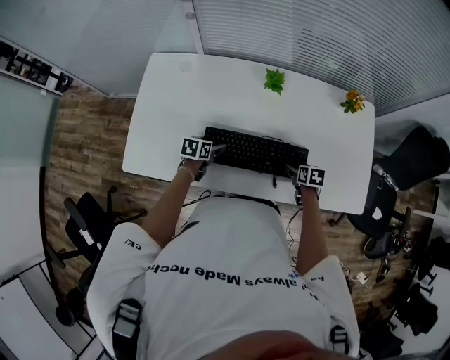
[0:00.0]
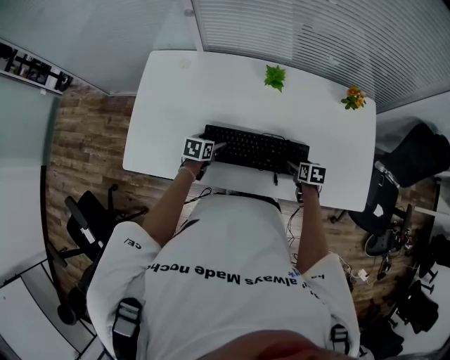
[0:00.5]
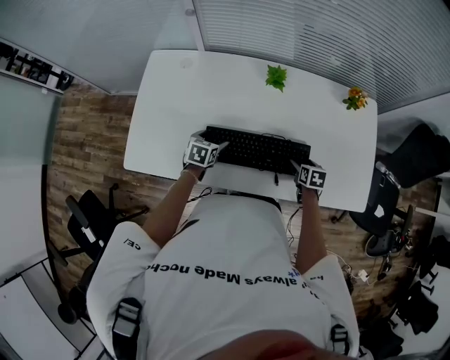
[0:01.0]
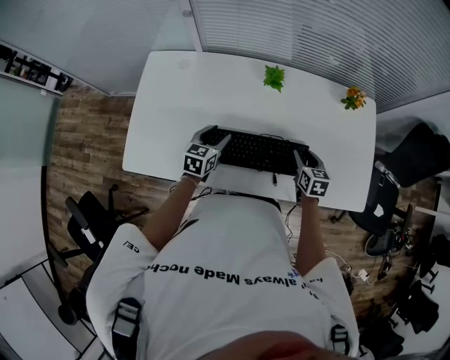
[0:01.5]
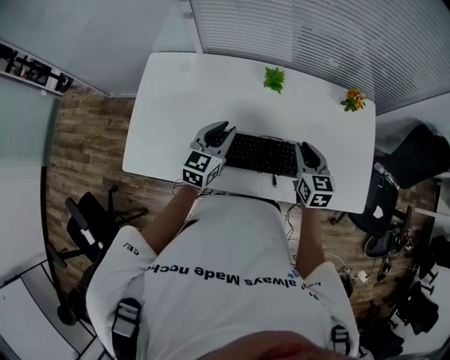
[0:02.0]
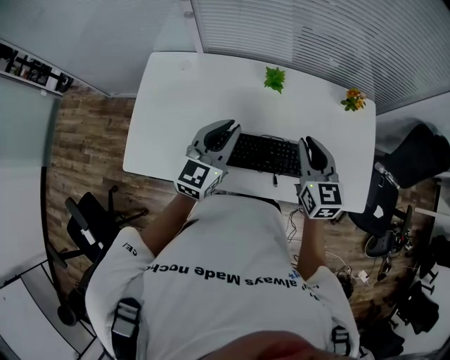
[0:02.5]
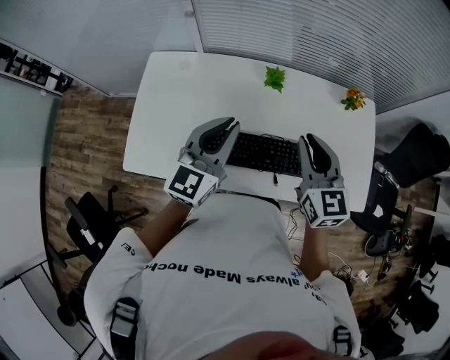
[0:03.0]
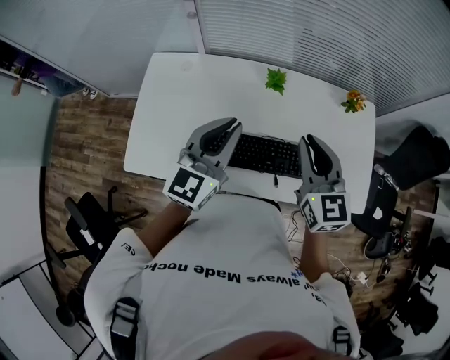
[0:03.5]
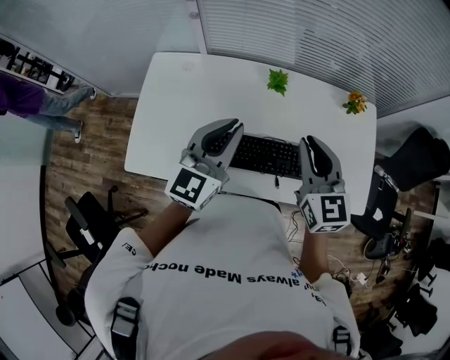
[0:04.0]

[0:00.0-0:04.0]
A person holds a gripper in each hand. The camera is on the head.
0:00.0 to 0:02.0: The grippers both shift upward by about 20 cm. The left gripper tips its fingers upward by roughly 30 degrees, and closes up; the right gripper tips its fingers upward by about 30 degrees, and closes.
0:02.0 to 0:04.0: The grippers both shift upward by about 15 cm.

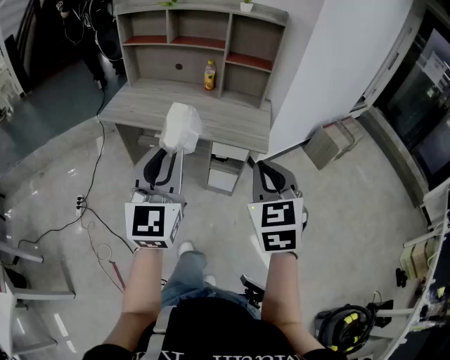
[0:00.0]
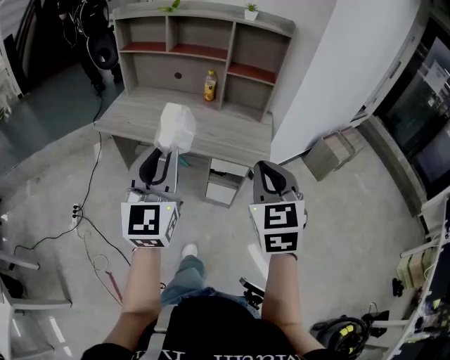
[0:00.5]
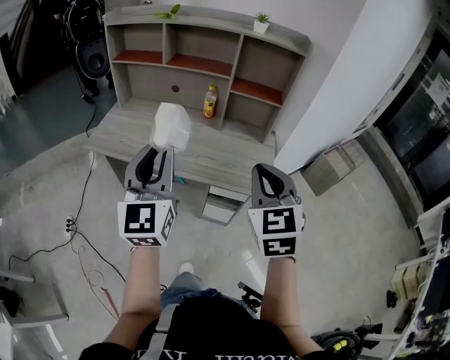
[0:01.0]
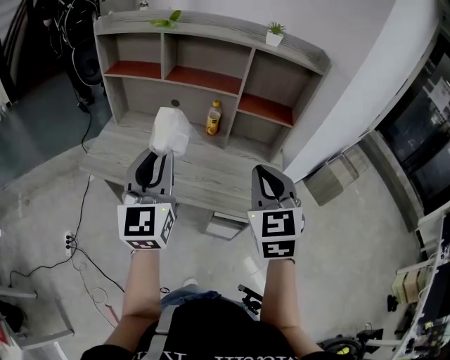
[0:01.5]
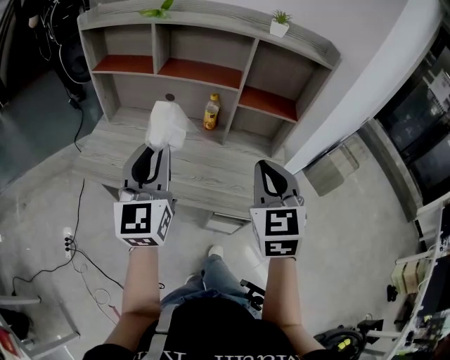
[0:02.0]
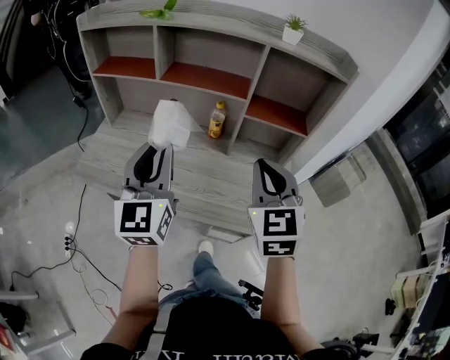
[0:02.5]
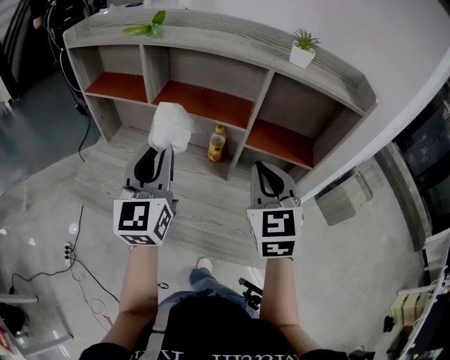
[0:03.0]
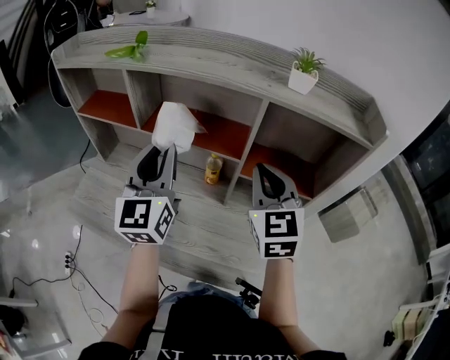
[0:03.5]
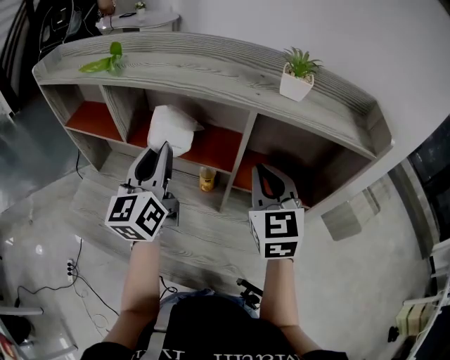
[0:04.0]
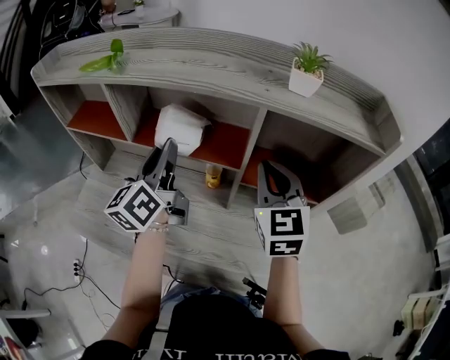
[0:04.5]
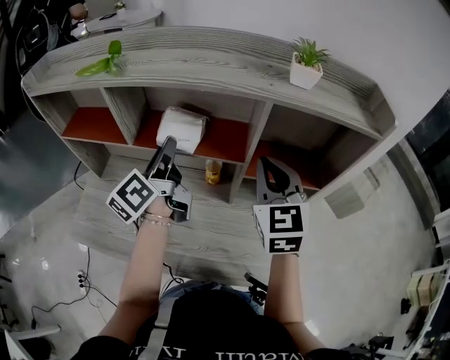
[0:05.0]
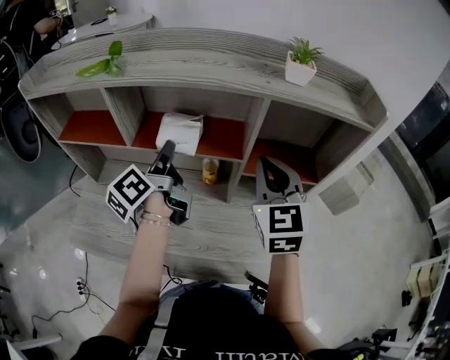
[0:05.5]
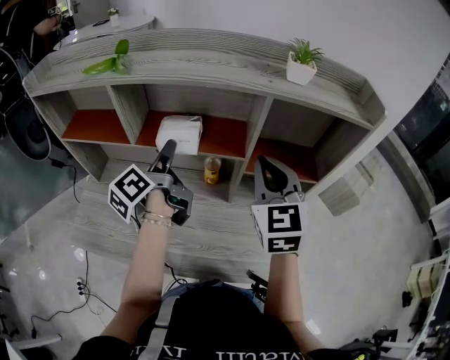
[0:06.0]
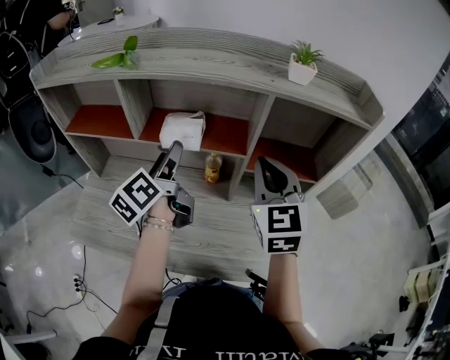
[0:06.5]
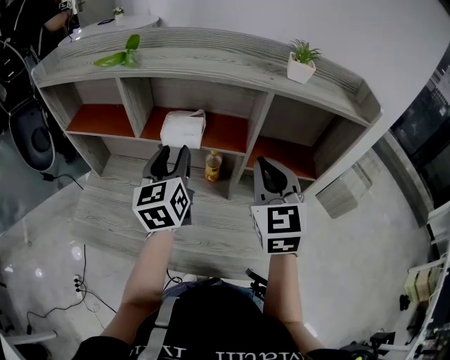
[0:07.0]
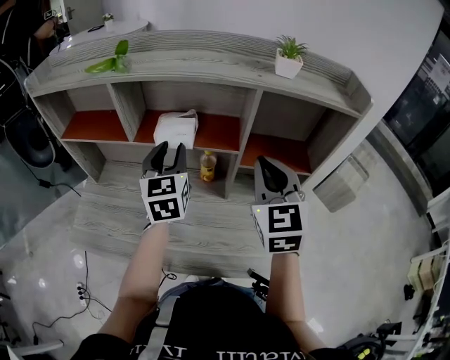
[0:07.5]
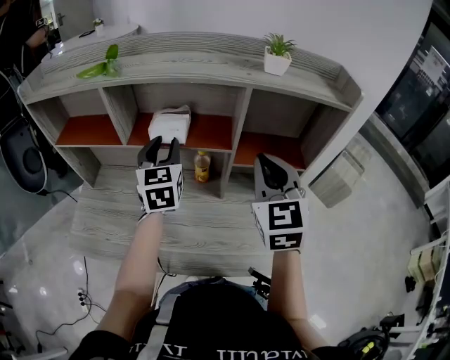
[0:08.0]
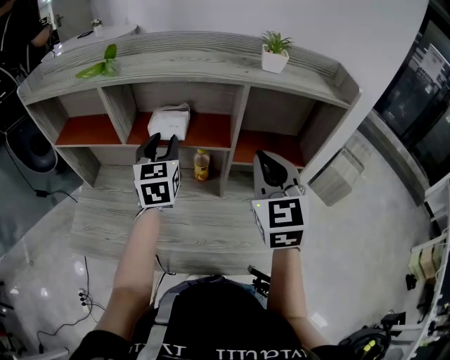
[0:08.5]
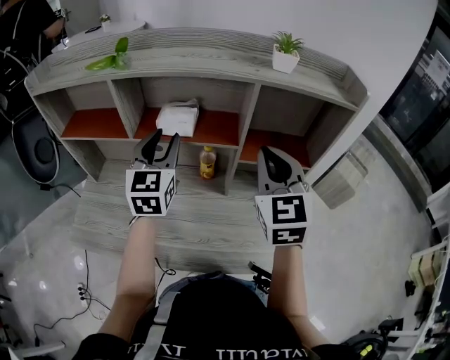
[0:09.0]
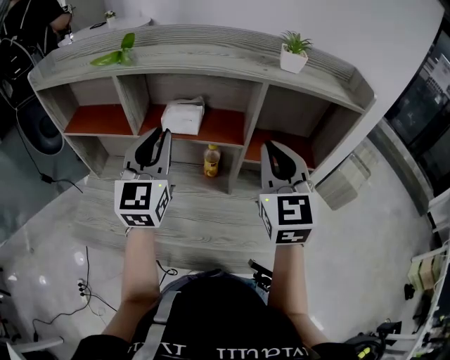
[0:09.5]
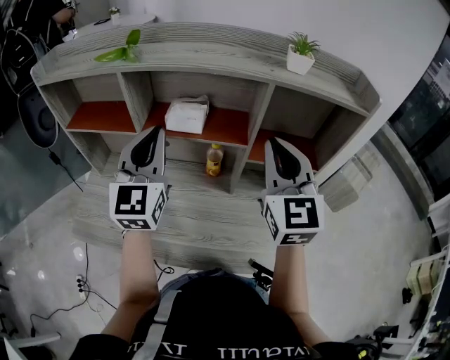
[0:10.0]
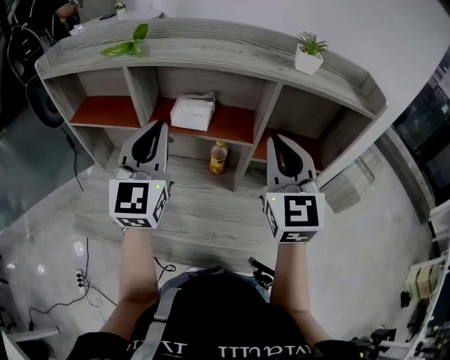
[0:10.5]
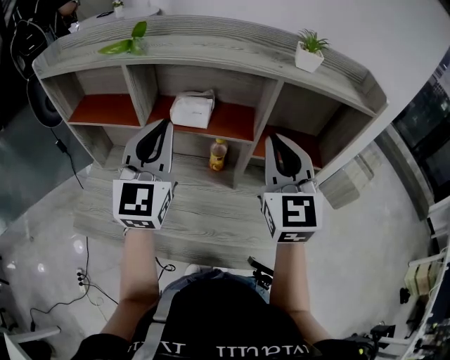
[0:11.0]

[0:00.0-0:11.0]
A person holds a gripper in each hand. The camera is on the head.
0:00.0 to 0:02.0: The two grippers go approximately 40 cm forward.
0:02.0 to 0:03.5: The grippers both shift forward by about 25 cm.
0:03.5 to 0:05.5: The left gripper is displaced forward and downward by some 10 cm, and twists about 60 degrees counterclockwise, seen from behind.
0:05.5 to 0:07.5: The left gripper rotates around the line of its fingers by roughly 70 degrees, clockwise from behind, and opens and closes again.
0:07.5 to 0:09.0: The grippers make only small movements.
0:09.0 to 0:11.0: The left gripper is displaced upward and backward by approximately 10 cm, and closes its fingers.

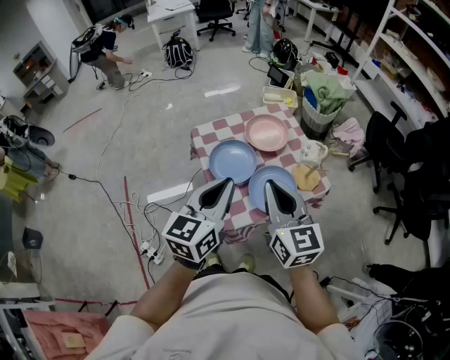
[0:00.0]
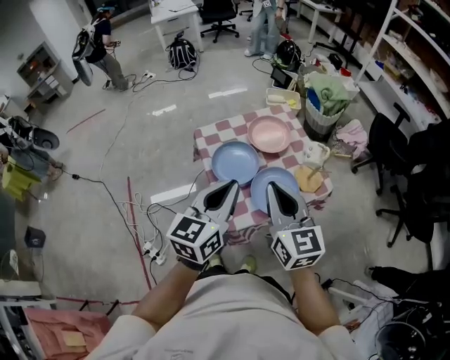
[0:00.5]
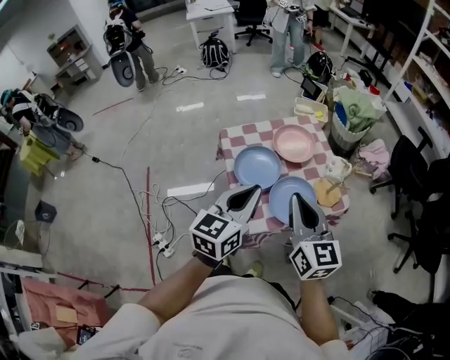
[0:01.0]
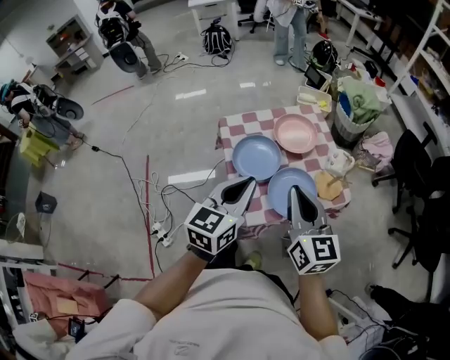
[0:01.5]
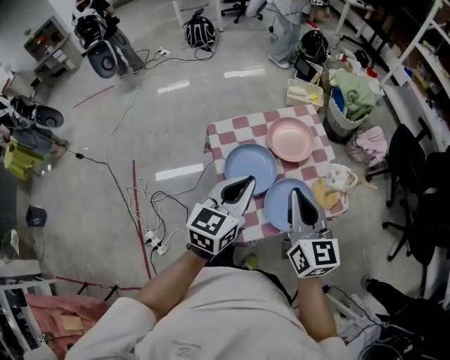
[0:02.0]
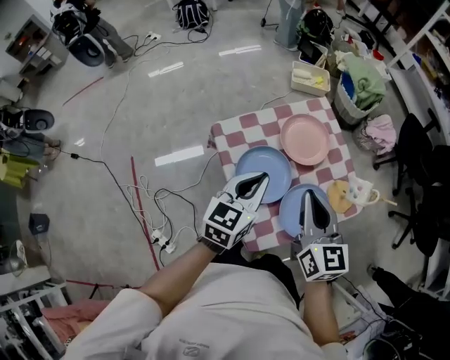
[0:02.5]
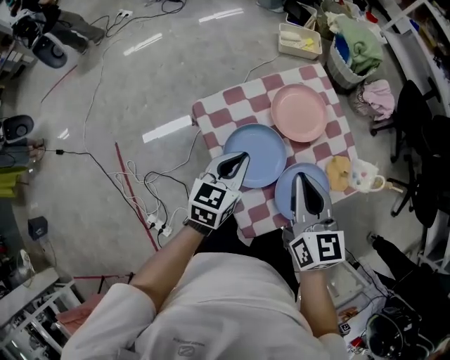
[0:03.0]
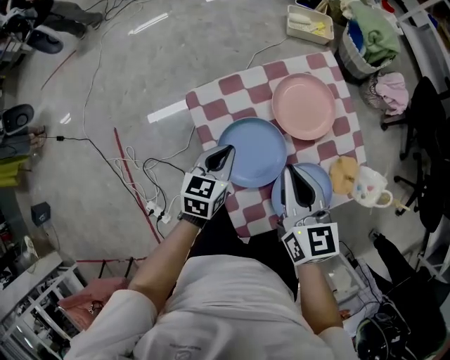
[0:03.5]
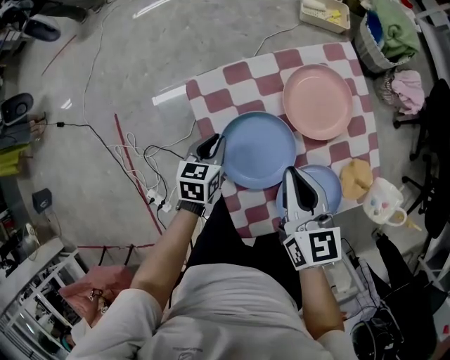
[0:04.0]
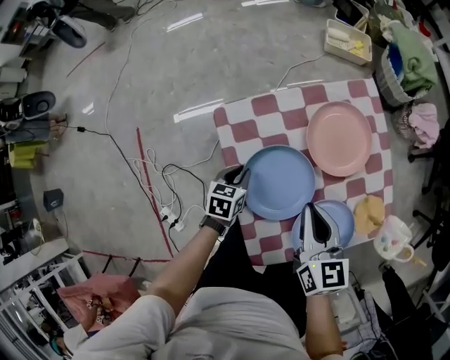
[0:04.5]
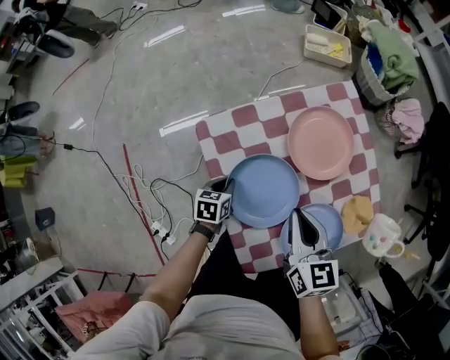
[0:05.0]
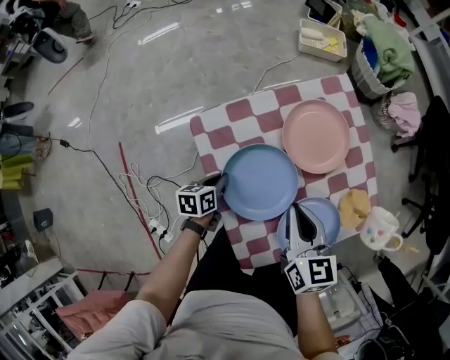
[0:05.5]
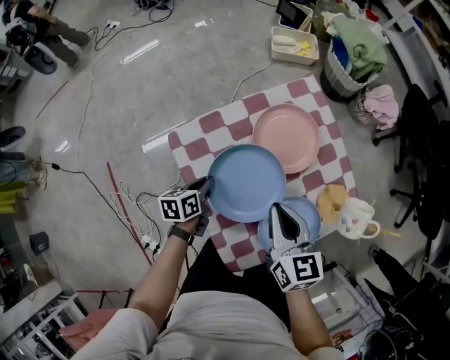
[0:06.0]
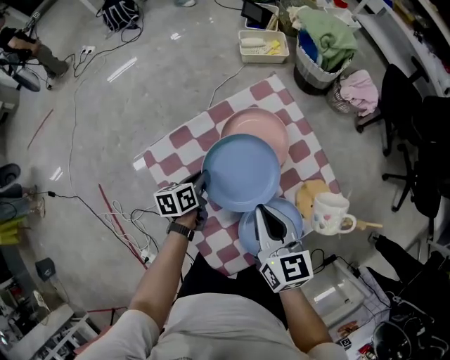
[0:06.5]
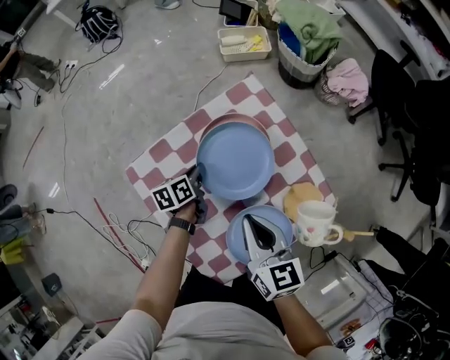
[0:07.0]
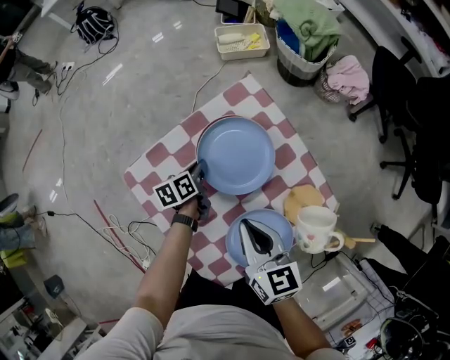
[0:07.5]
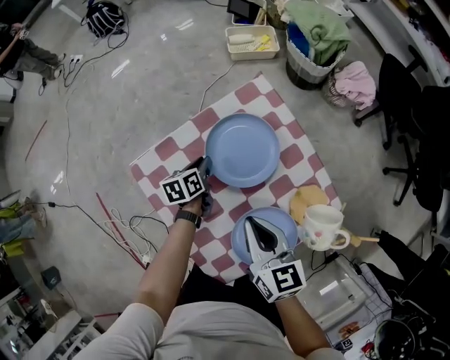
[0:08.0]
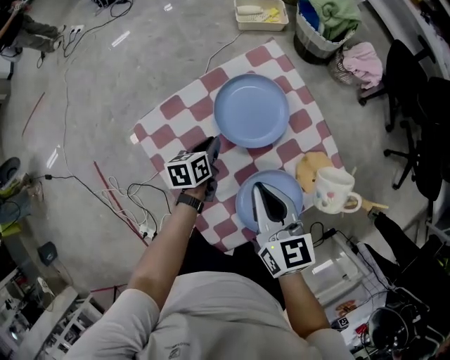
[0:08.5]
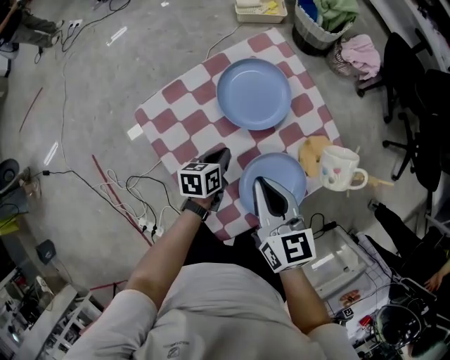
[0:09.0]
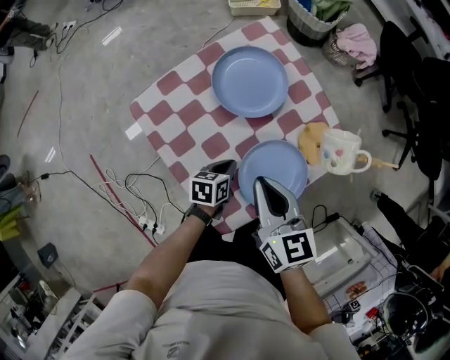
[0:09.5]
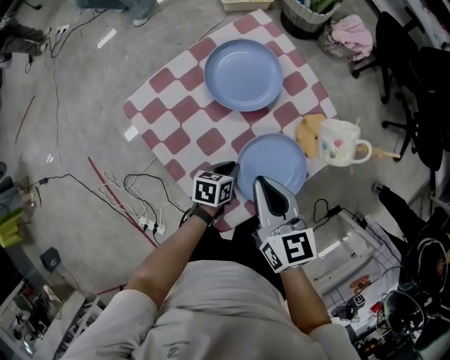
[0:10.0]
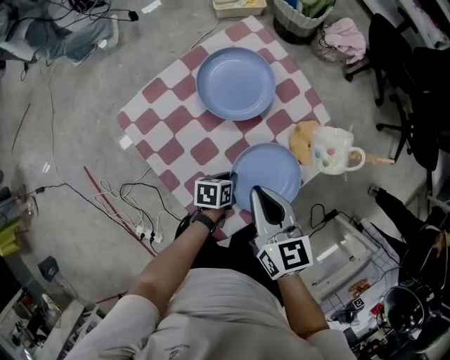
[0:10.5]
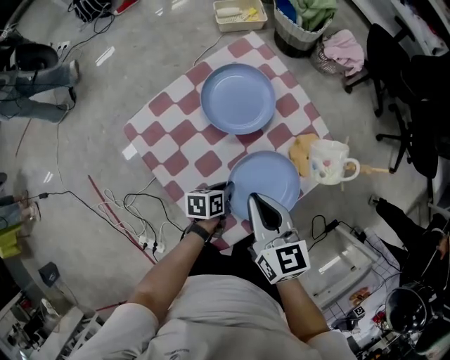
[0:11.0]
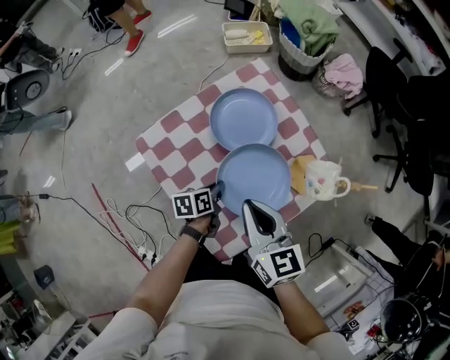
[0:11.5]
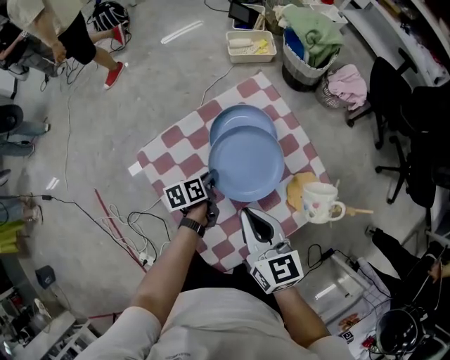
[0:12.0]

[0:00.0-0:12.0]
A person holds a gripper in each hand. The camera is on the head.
0:00.0 to 0:02.0: The right gripper goes approximately 10 cm forward; the left gripper travels forward and downward by approximately 15 cm.
0:02.0 to 0:04.0: The two grippers go some 30 cm downward and forward. The left gripper points its fingers about 30 degrees further downward.
0:04.0 to 0:06.0: The left gripper goes downward and returns, roughly 10 cm each way, and rotates some 20 degrees.
0:06.0 to 0:08.0: The left gripper moves forward and to the right, some 20 cm; the right gripper goes roughly 5 cm to the right.
0:08.0 to 0:10.0: The left gripper heads backward and to the right, covering roughly 30 cm, and swivels roughly 30 degrees. The right gripper travels backward by about 10 cm.
0:10.0 to 0:12.0: The right gripper shifts approximately 5 cm forward. Meanwhile the left gripper moves forward and to the left, some 20 cm, and changes its angle by about 30 degrees.
